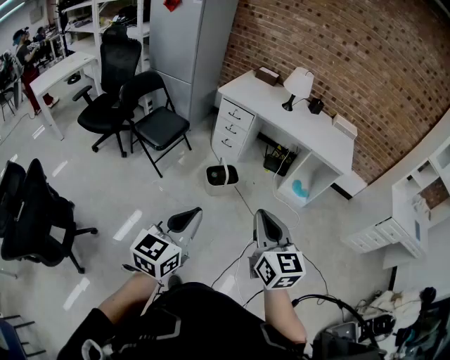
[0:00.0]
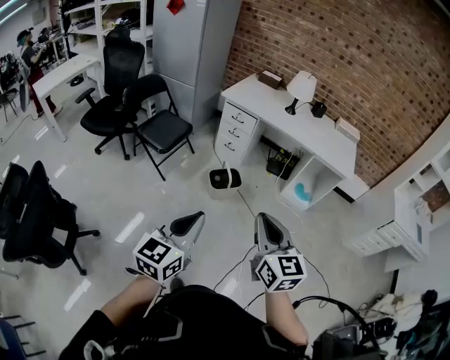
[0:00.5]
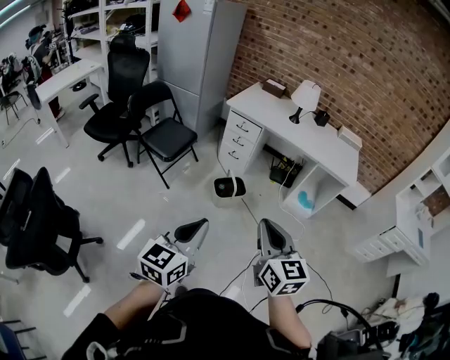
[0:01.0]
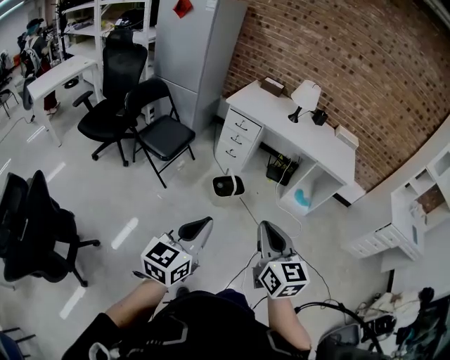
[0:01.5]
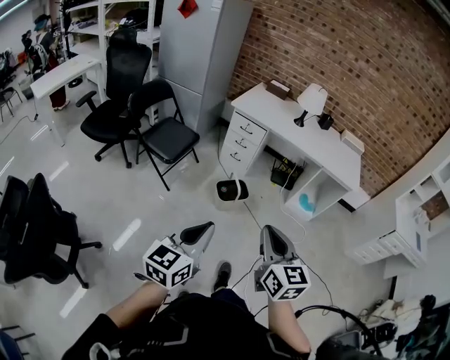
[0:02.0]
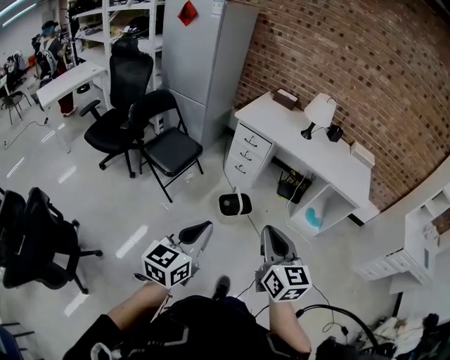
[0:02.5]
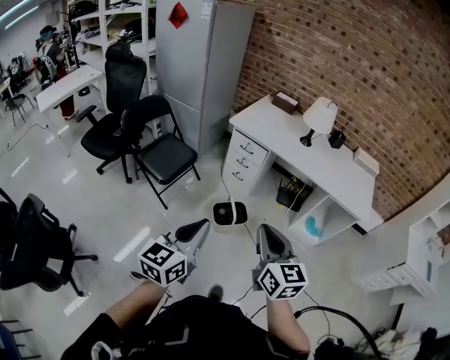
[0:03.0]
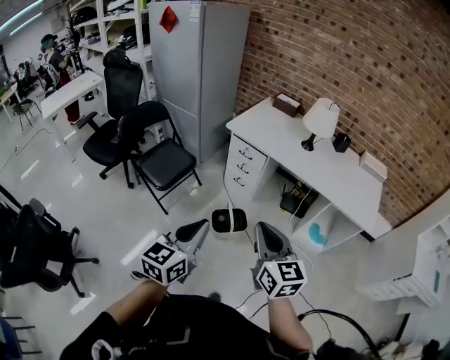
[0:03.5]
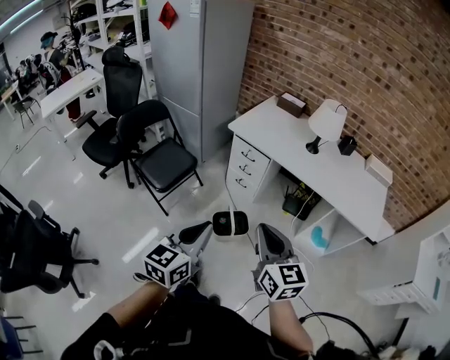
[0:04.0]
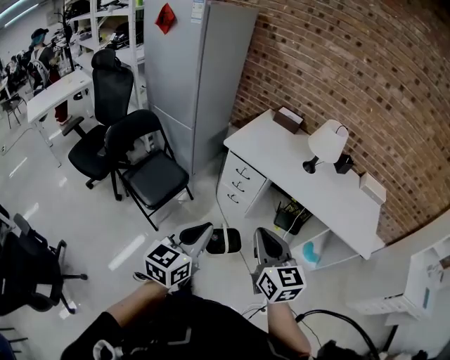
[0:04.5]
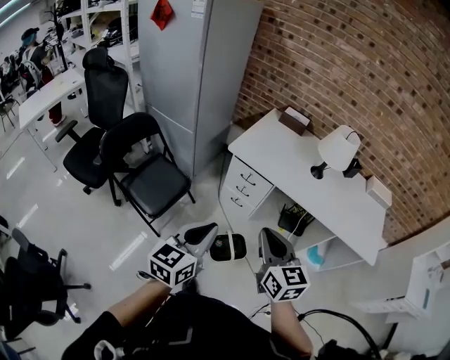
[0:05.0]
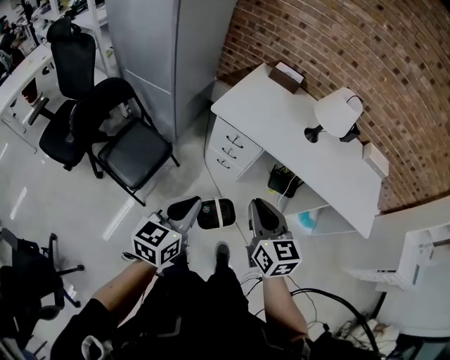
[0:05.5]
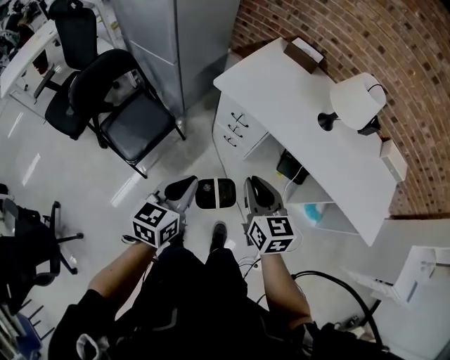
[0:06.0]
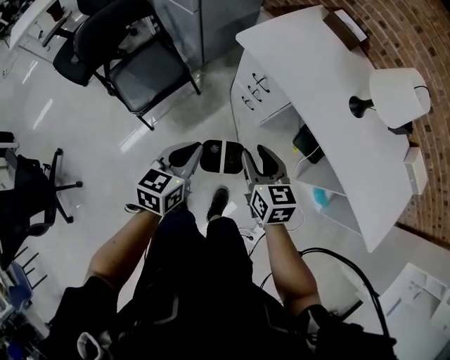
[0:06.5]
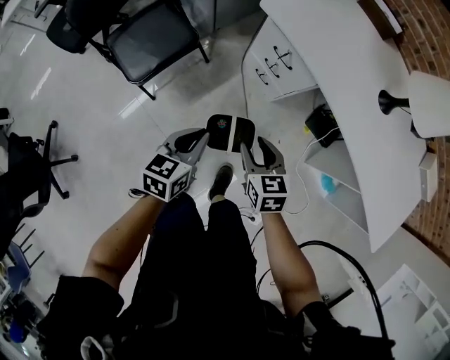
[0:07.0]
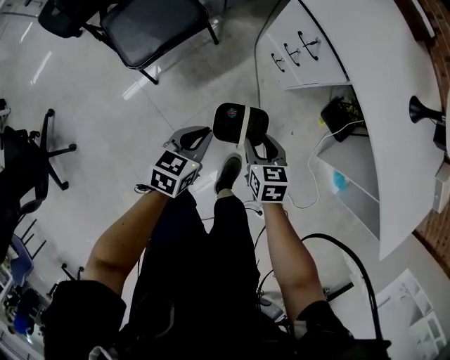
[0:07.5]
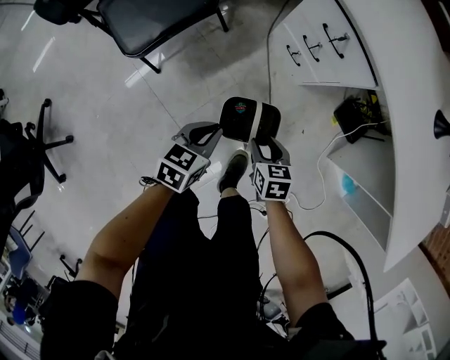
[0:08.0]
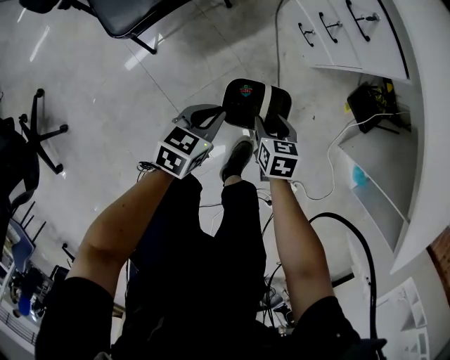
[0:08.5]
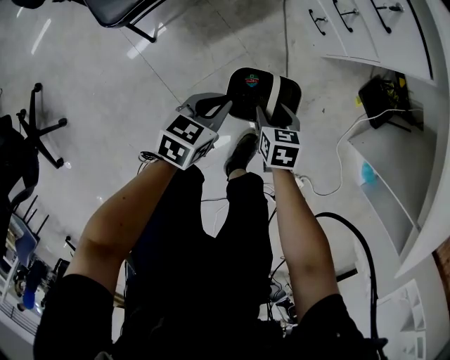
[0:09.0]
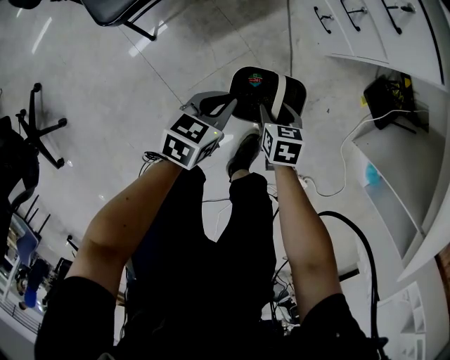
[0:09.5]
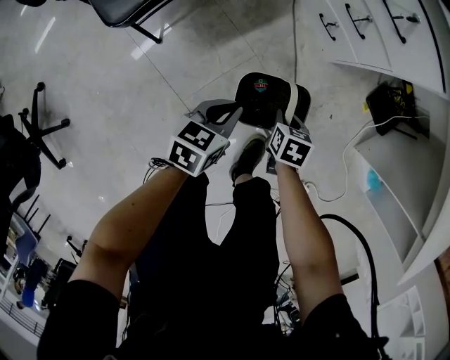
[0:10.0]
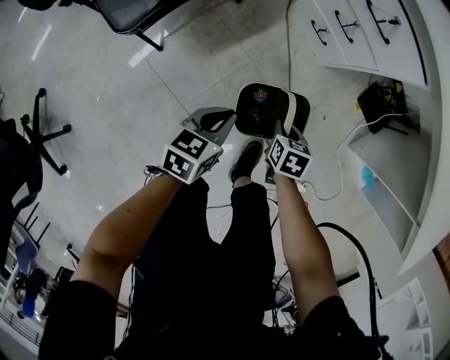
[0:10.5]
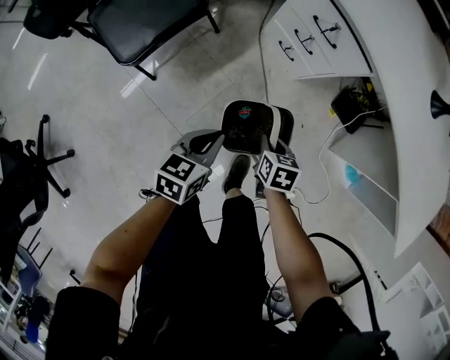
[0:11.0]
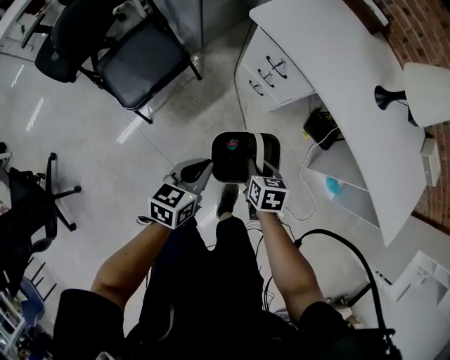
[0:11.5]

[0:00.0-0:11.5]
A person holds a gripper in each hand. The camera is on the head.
0:00.0 to 0:02.0: Both grippers travel together to the left, about 10 cm.
0:02.0 to 0:04.0: The left gripper travels forward and to the right by roughly 35 cm. The right gripper is displaced forward by roughly 30 cm.
0:04.0 to 0:06.0: The two grippers go about 30 cm forward and downward.
0:06.0 to 0:07.5: Both grippers travel together downward, roughly 35 cm. The left gripper changes its angle by roughly 20 degrees. Meanwhile the right gripper turns by about 30 degrees, and opens.
0:07.5 to 0:09.5: The two grippers go some 25 cm downward.
0:09.5 to 0:11.5: Both grippers travel together upward, roughly 30 cm. The right gripper closes its fingers.

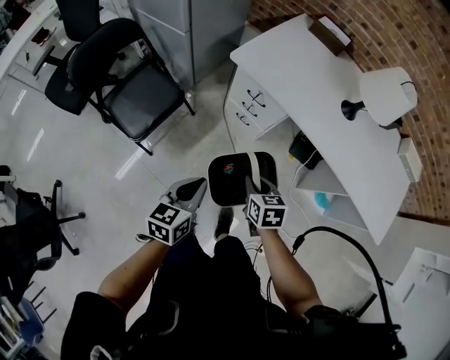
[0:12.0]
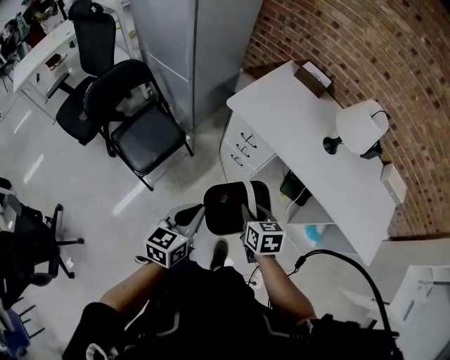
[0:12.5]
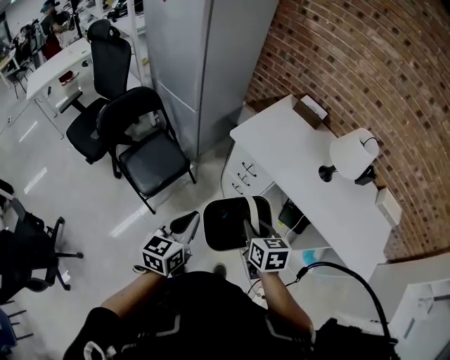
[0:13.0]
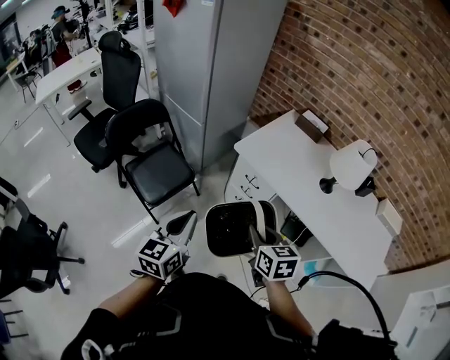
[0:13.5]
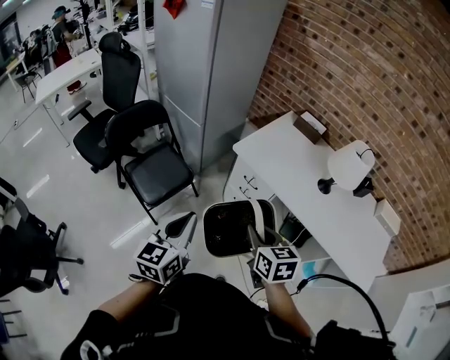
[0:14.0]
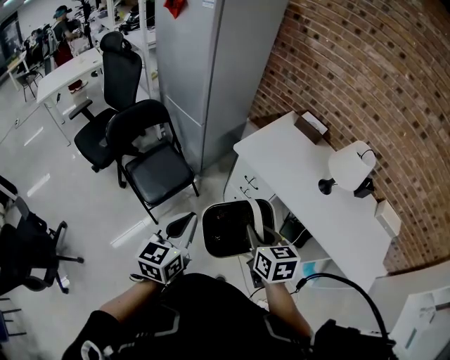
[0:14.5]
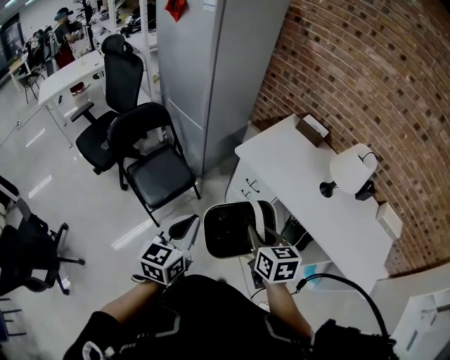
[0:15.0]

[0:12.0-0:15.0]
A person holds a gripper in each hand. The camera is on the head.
0:12.0 to 0:13.5: Both grippers travel together upward, roughly 20 cm. The left gripper changes its angle by approximately 20 degrees.
0:13.5 to 0:15.0: The grippers make only small movements.

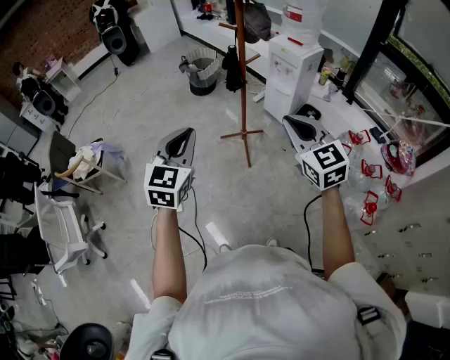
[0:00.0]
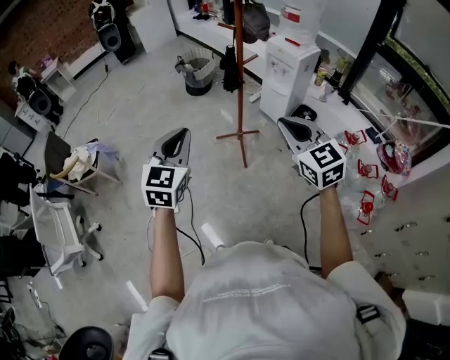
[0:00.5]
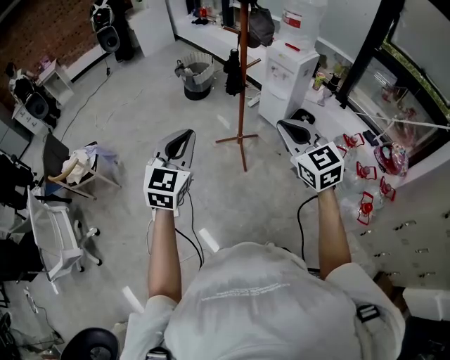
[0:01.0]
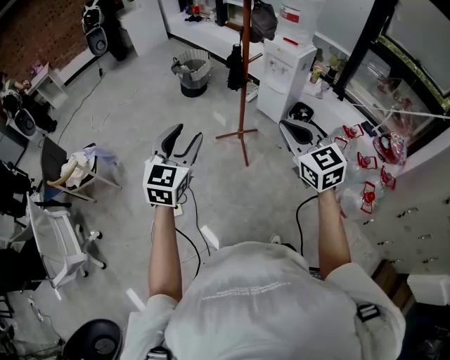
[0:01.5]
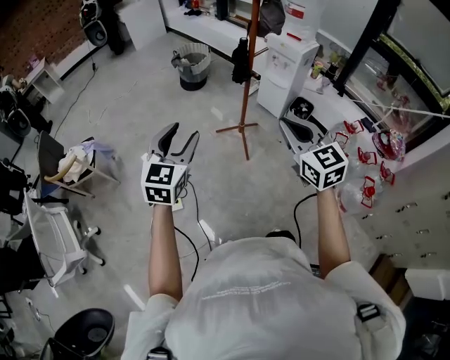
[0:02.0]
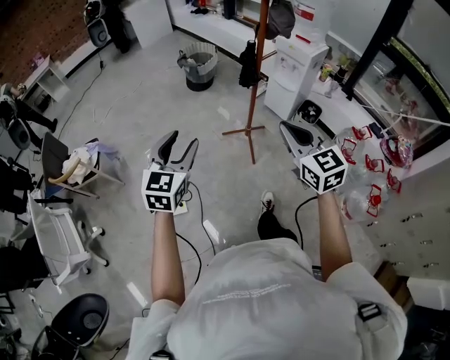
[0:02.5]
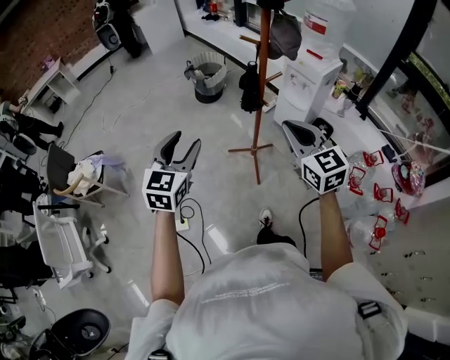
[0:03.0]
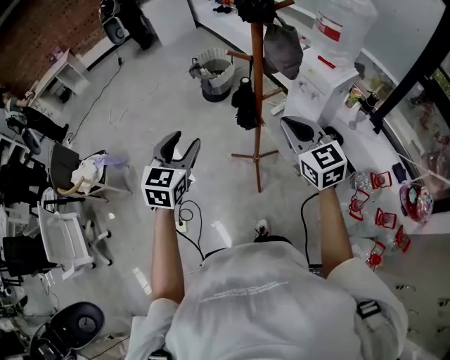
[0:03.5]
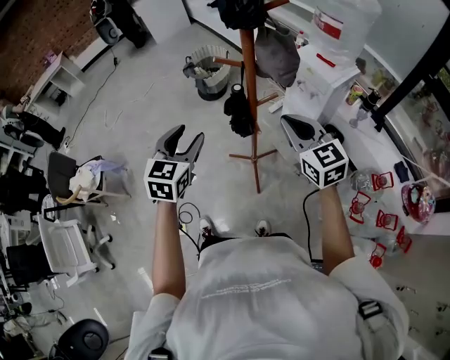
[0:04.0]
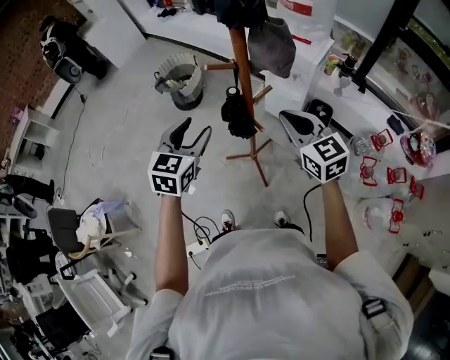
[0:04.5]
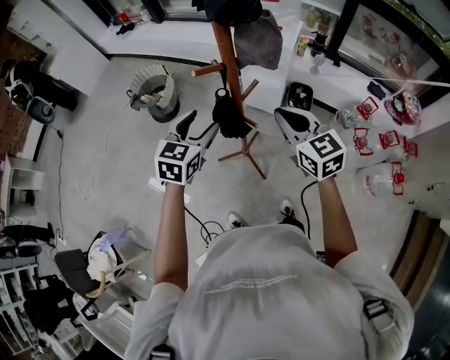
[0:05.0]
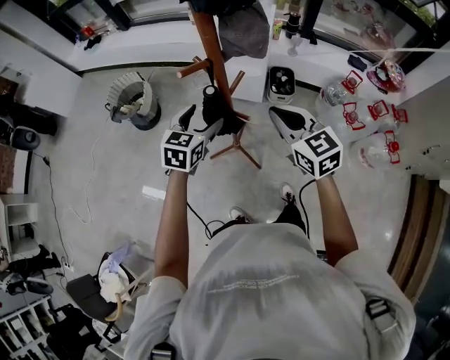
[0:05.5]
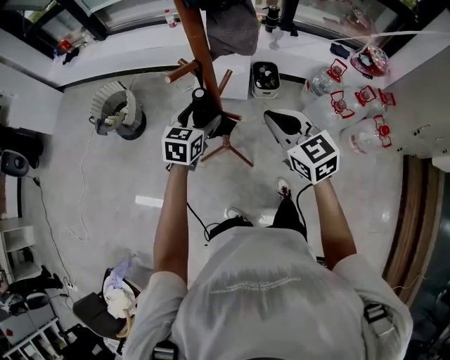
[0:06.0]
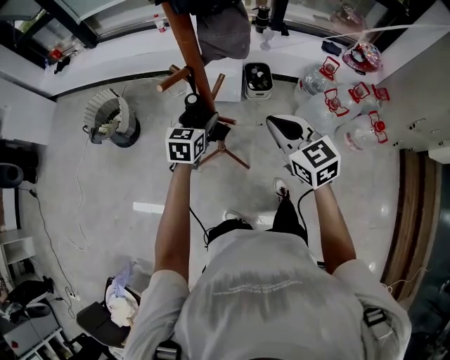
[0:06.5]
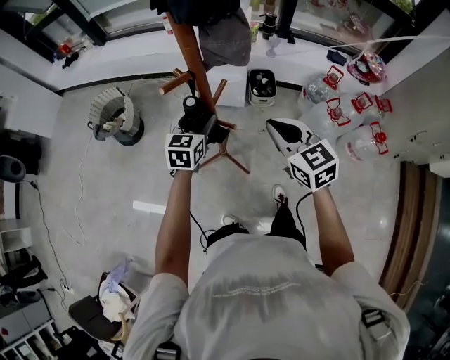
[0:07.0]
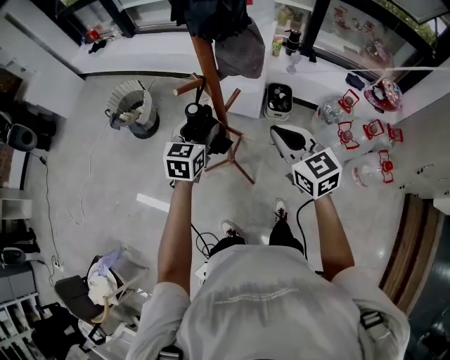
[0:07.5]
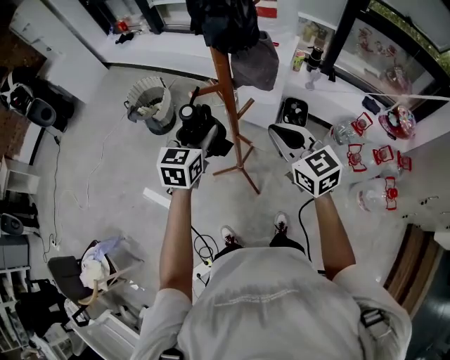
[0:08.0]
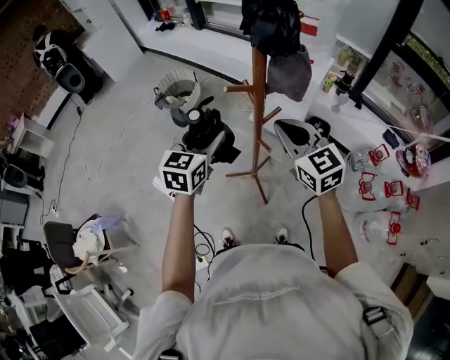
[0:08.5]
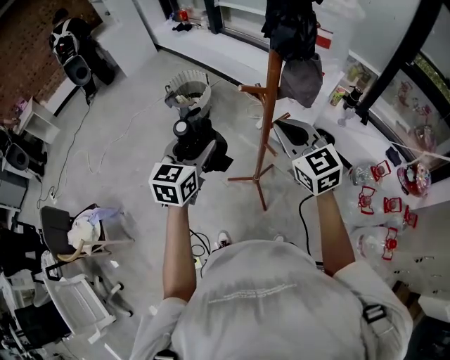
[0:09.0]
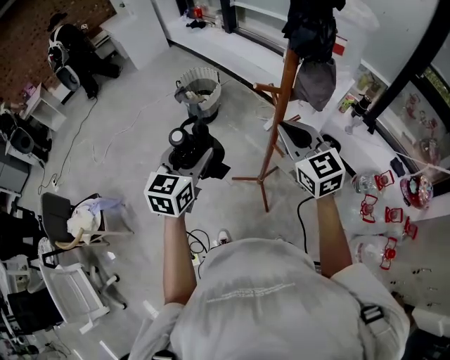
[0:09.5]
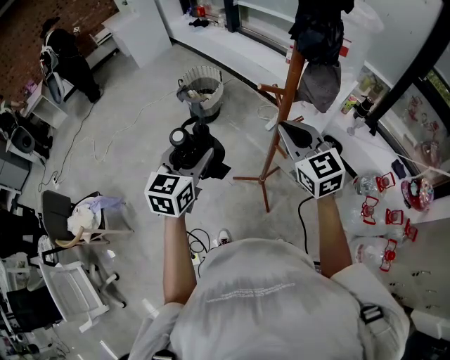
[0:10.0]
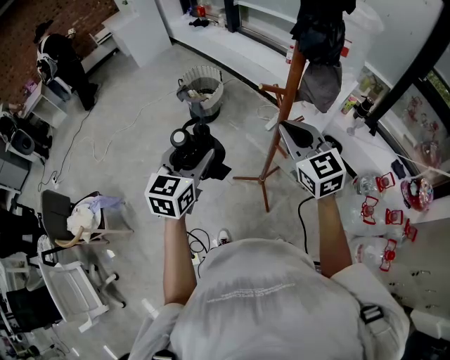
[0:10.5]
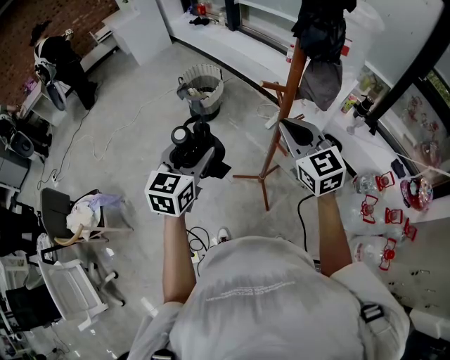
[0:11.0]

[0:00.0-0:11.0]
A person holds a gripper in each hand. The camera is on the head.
0:00.0 to 0:02.0: The two grippers go about 10 cm to the left. The left gripper opens its fingers.
0:02.0 to 0:03.5: The left gripper moves forward and to the right, approximately 30 cm. The right gripper travels forward by roughly 35 cm.
0:03.5 to 0:05.5: The left gripper shifts by roughly 25 cm, and rotates about 50 degrees; the right gripper goes about 5 cm downward, and turns by about 40 degrees.
0:05.5 to 0:07.5: The left gripper reaches about 5 cm downward, then returns.
0:07.5 to 0:09.0: The left gripper shifts approximately 20 cm to the left, upward and backward, and swivels approximately 20 degrees; the right gripper travels to the left, upward and forward by some 15 cm, and swivels roughly 30 degrees.
0:09.0 to 0:11.0: The left gripper changes place by roughly 5 cm.

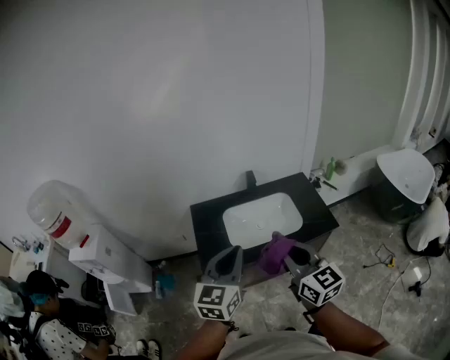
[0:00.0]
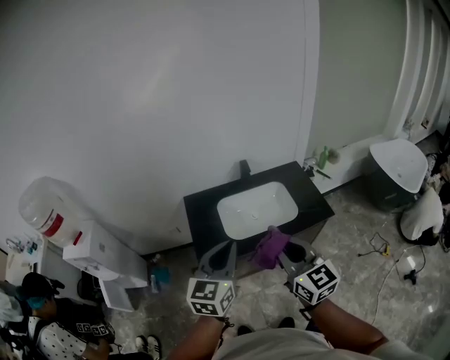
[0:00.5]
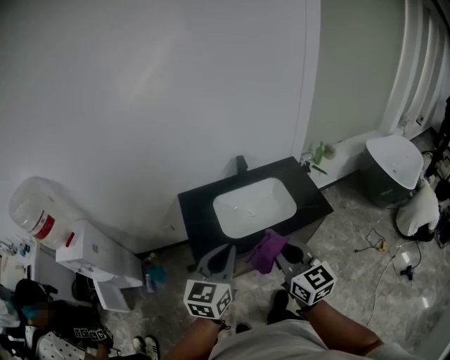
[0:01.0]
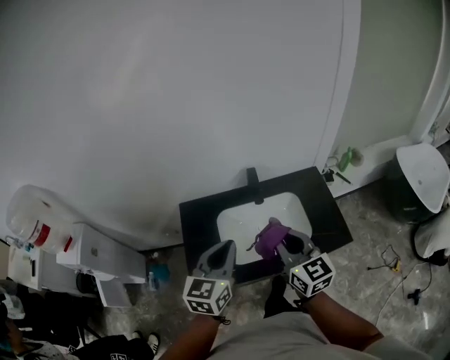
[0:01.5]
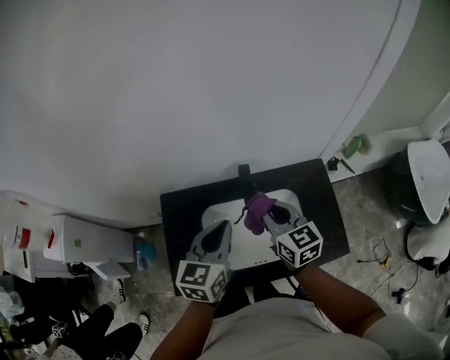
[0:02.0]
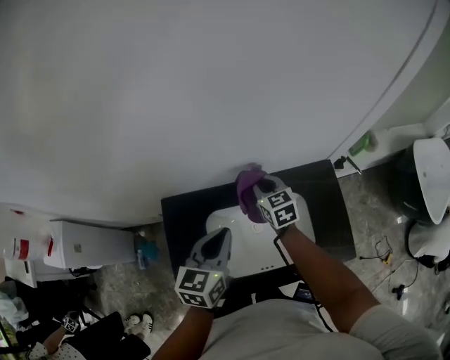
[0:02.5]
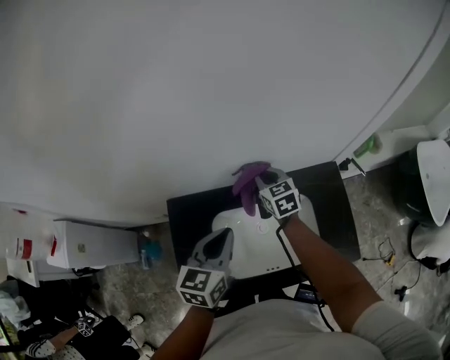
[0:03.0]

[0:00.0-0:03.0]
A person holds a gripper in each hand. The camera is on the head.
0:00.0 to 0:01.5: The right gripper moves forward, approximately 25 cm; the left gripper shifts roughly 25 cm forward and downward.
0:01.5 to 0:03.0: The right gripper shifts roughly 40 cm forward and downward, and turns by about 20 degrees; the left gripper travels forward by approximately 20 cm.
